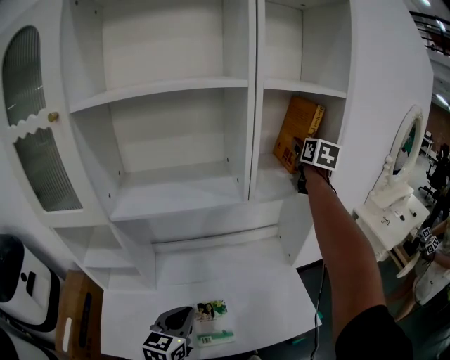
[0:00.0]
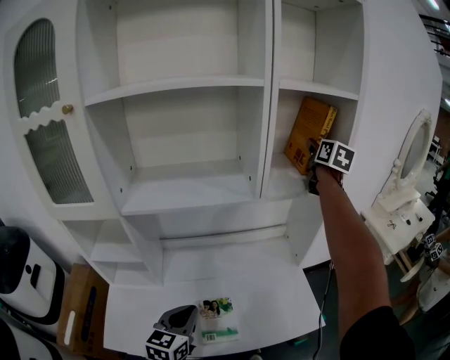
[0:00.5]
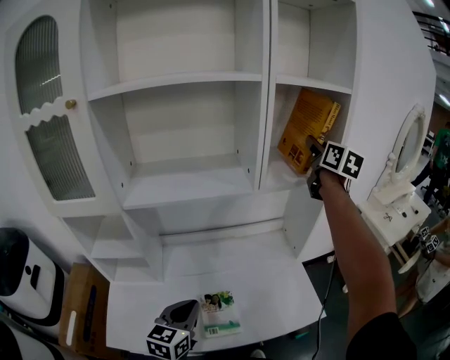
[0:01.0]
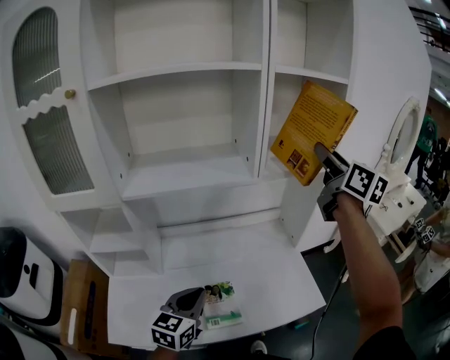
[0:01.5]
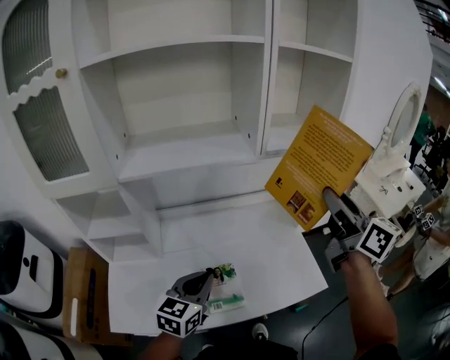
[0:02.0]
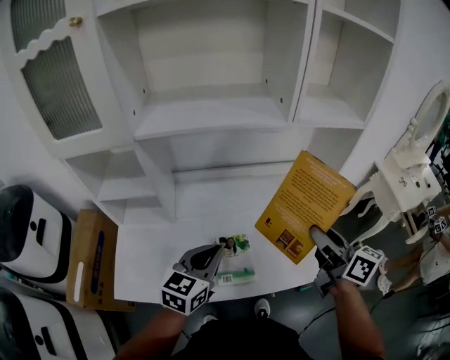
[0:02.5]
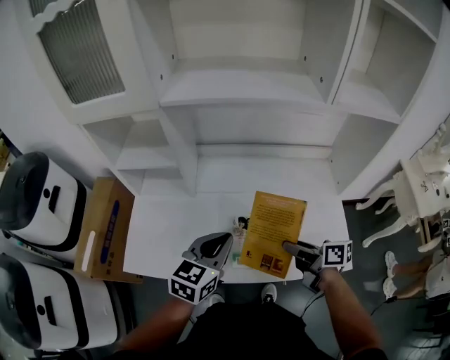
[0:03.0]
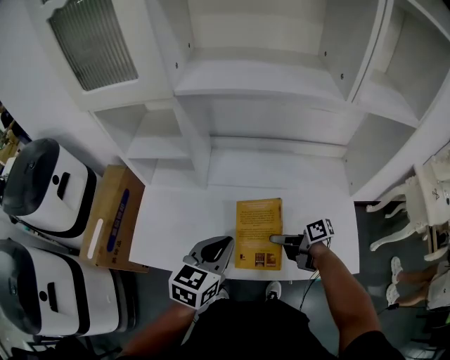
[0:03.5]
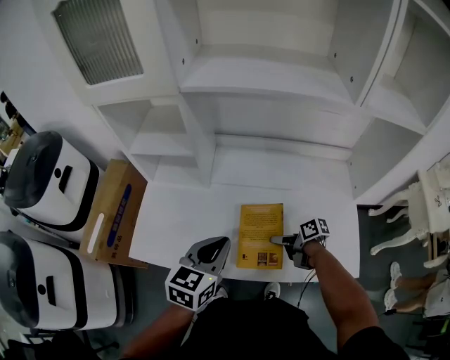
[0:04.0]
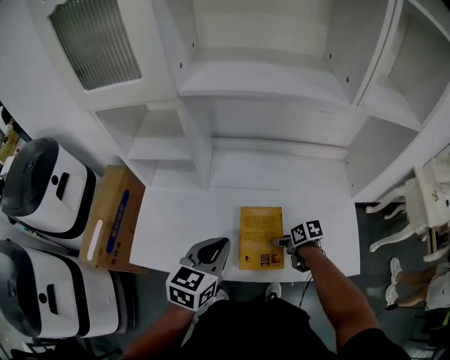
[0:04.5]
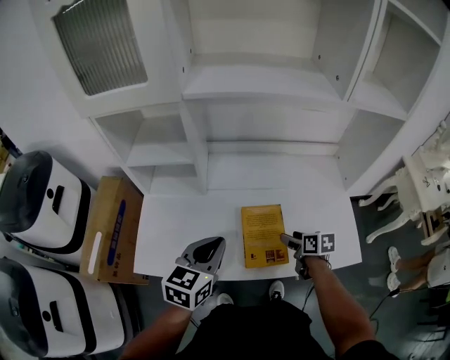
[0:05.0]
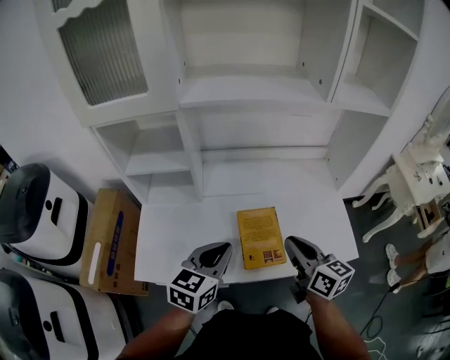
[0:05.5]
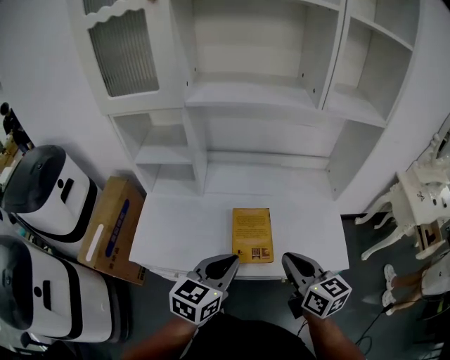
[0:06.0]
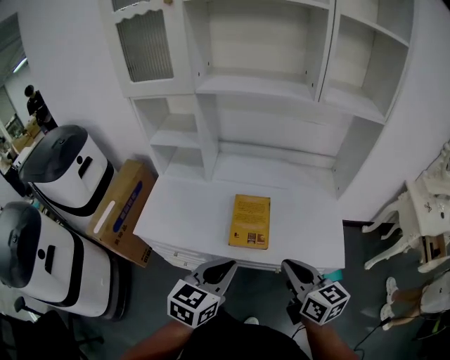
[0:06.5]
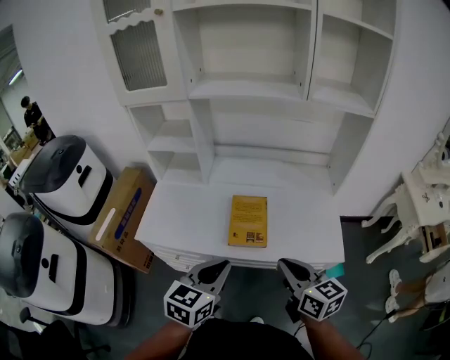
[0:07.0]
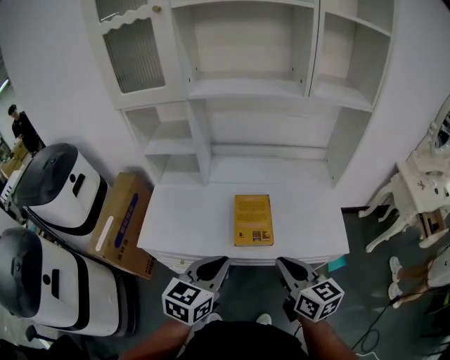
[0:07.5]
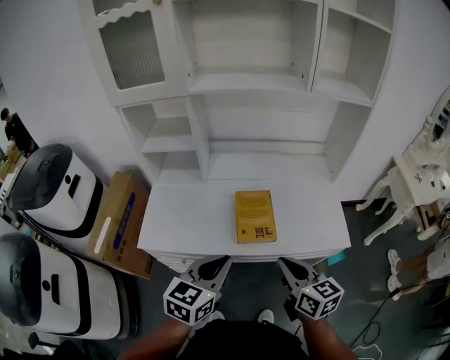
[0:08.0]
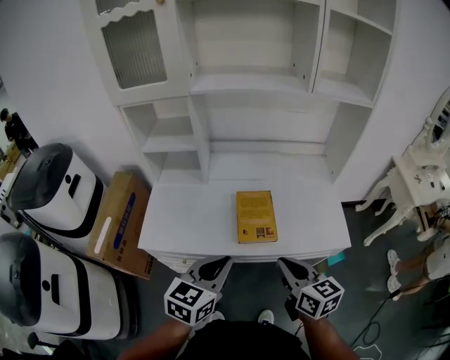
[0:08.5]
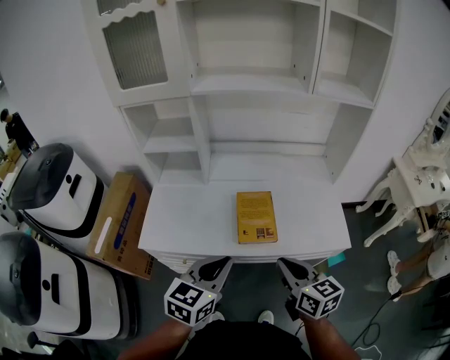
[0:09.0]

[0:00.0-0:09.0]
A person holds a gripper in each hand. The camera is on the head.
0:00.0 to 0:02.0: The right gripper heads backward, covering some 35 cm, and swivels roughly 30 degrees.
0:02.0 to 0:04.5: The right gripper moves downward, roughly 50 cm, points its fingers roughly 60 degrees further downward, and opens. The left gripper shifts by about 10 cm.
0:04.5 to 0:07.0: The left gripper changes place by about 20 cm. Meanwhile the right gripper goes some 25 cm upward, tips its fingers upward by about 40 degrees, and closes its fingers.
0:07.0 to 0:09.0: Both grippers travel together to the left, about 5 cm.

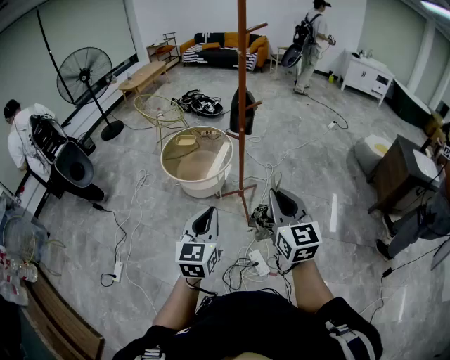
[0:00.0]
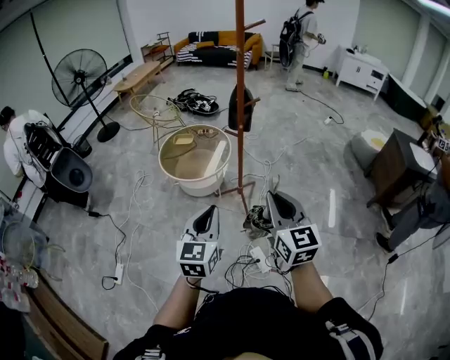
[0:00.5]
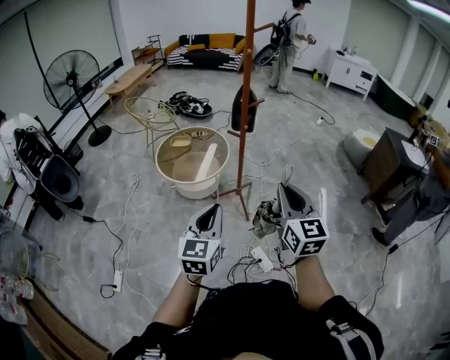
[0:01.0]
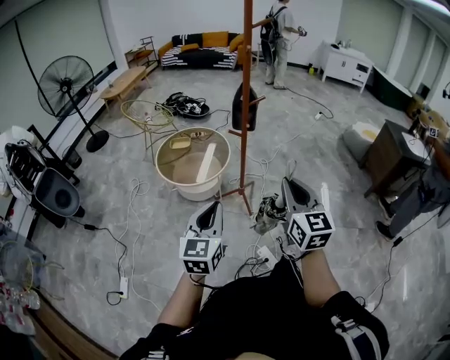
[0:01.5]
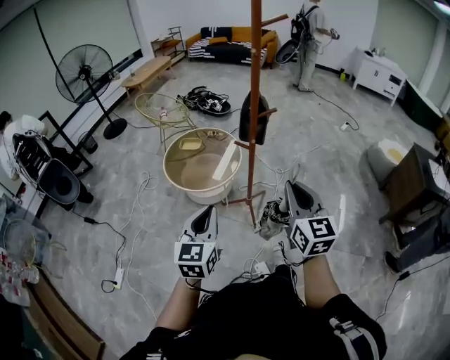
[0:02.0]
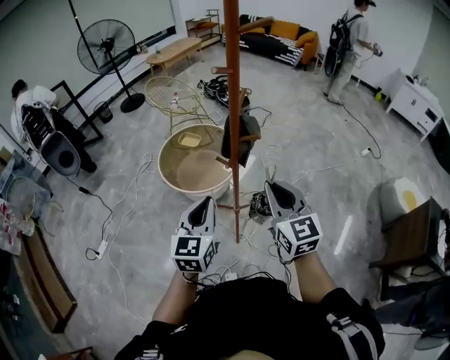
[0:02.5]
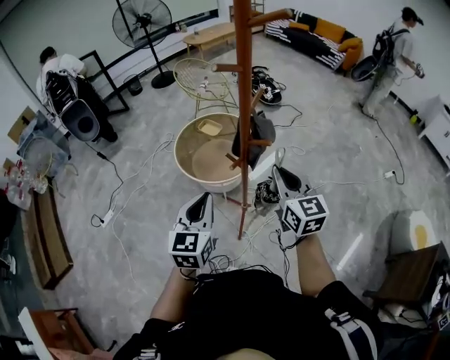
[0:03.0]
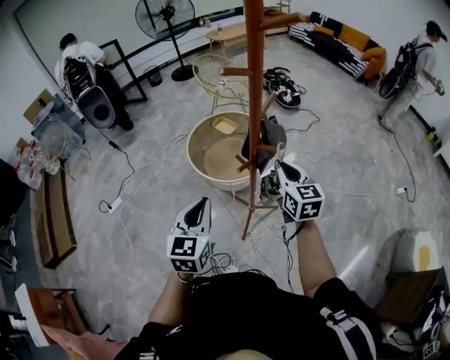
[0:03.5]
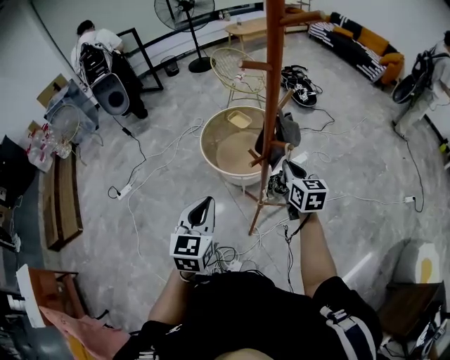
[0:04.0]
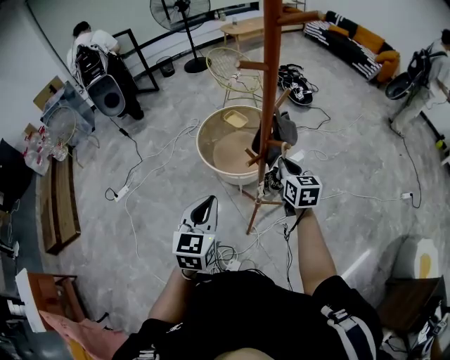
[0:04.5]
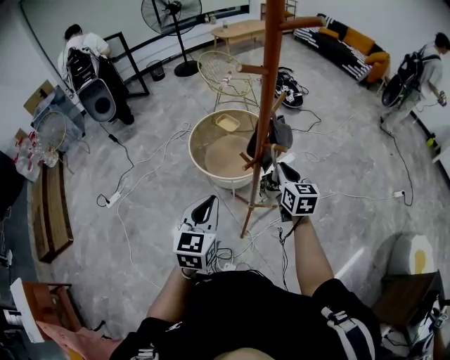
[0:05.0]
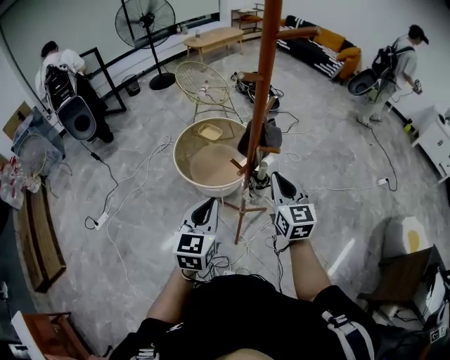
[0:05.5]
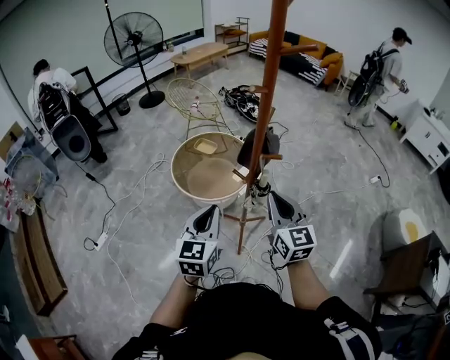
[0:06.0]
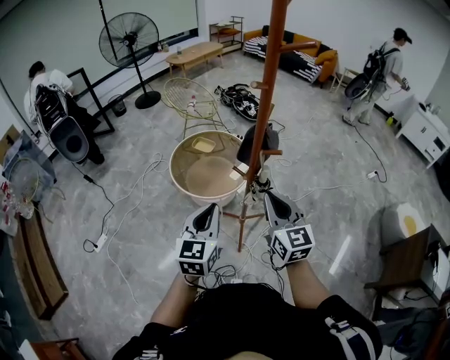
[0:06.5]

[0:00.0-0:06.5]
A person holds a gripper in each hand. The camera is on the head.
0:00.0 to 0:02.0: Both grippers move forward, approximately 20 cm.
0:02.0 to 0:04.5: Both grippers are carried about 50 cm. The right gripper rotates some 40 degrees, while the left gripper changes its angle by some 40 degrees.
0:04.5 to 0:06.5: The left gripper moves to the left and upward, roughly 15 cm; the right gripper is displaced backward, to the left and upward by some 25 cm, and swivels some 20 degrees.

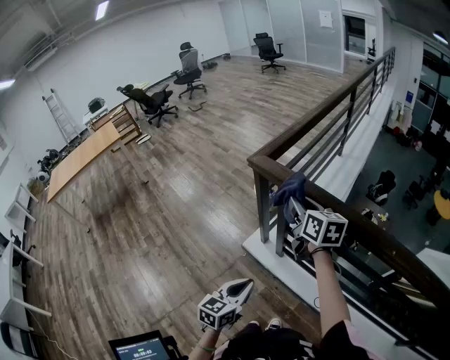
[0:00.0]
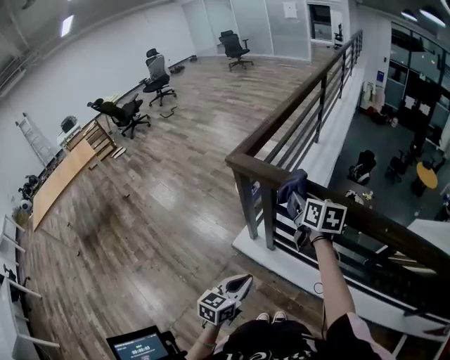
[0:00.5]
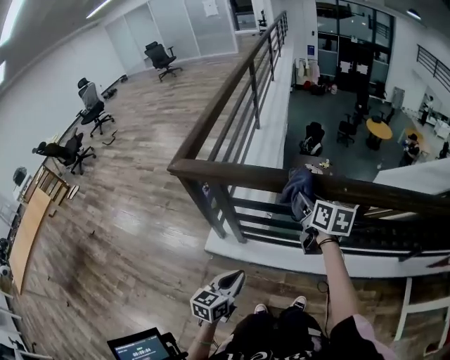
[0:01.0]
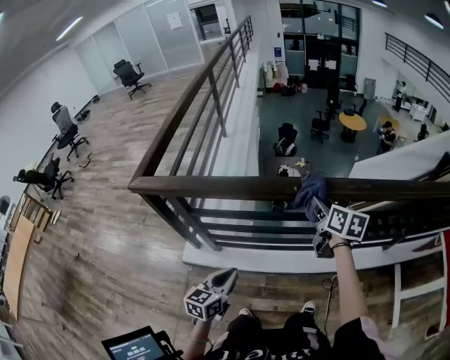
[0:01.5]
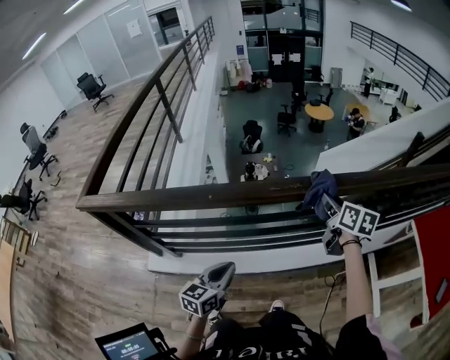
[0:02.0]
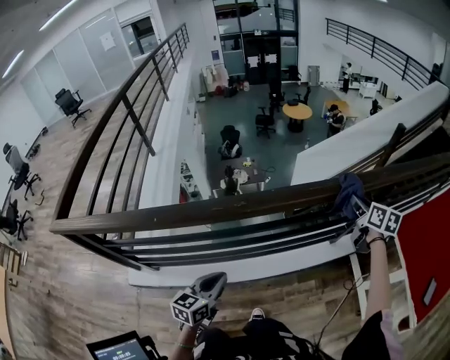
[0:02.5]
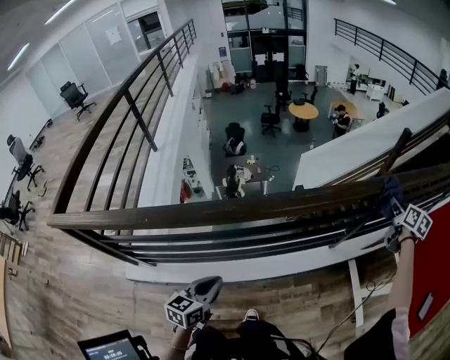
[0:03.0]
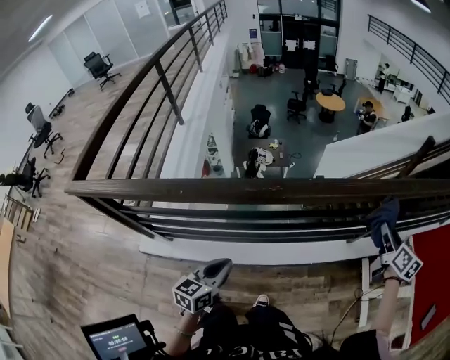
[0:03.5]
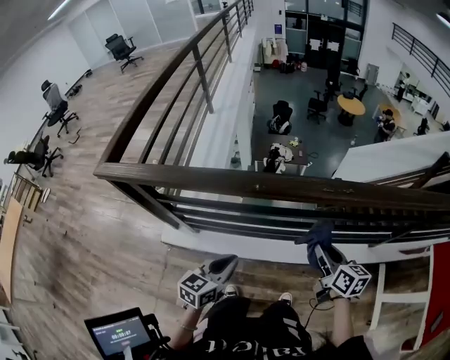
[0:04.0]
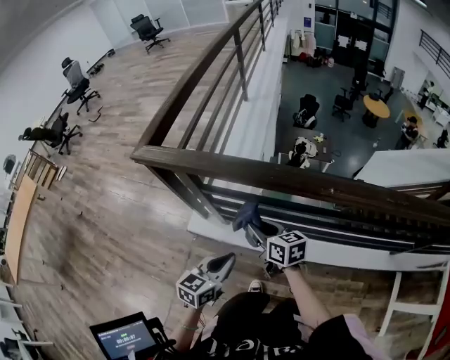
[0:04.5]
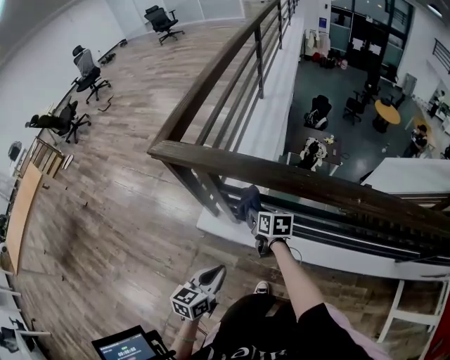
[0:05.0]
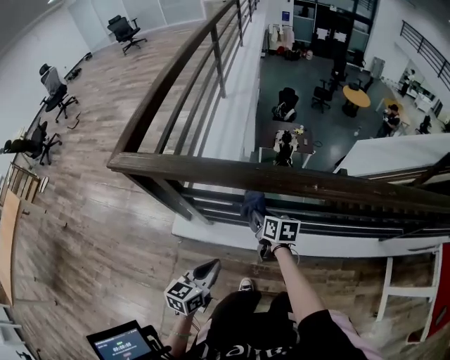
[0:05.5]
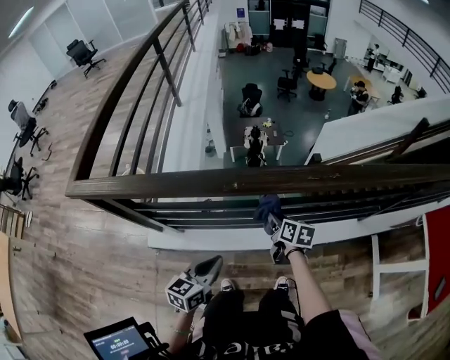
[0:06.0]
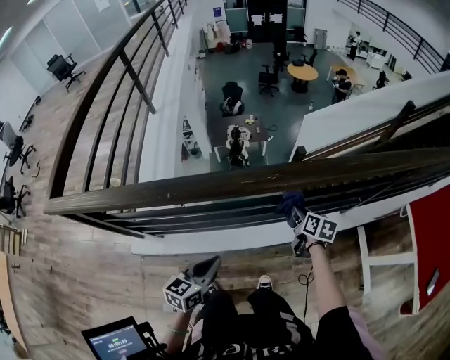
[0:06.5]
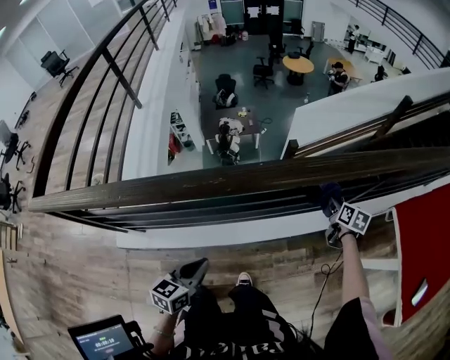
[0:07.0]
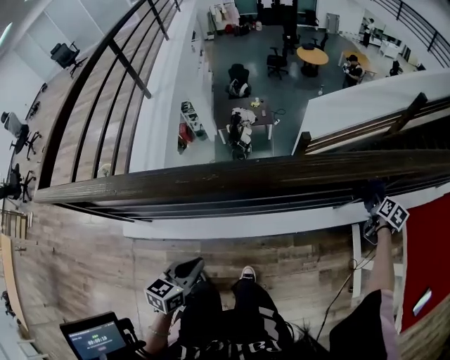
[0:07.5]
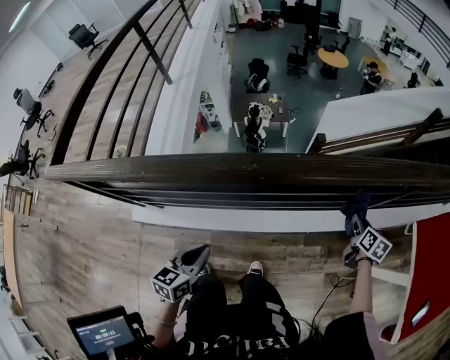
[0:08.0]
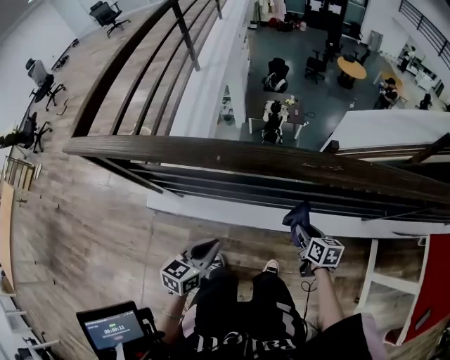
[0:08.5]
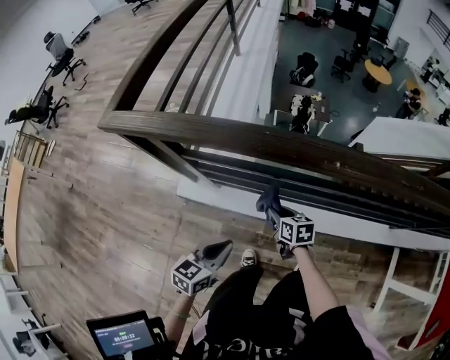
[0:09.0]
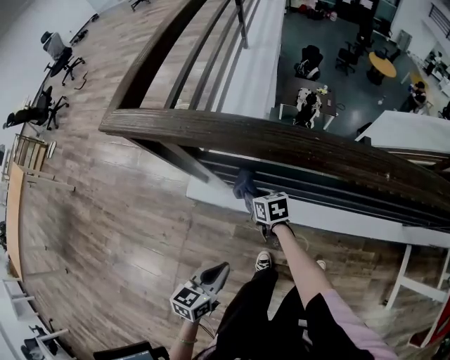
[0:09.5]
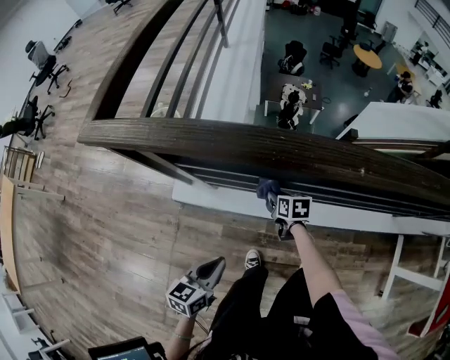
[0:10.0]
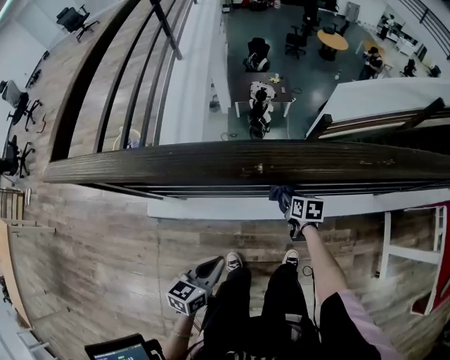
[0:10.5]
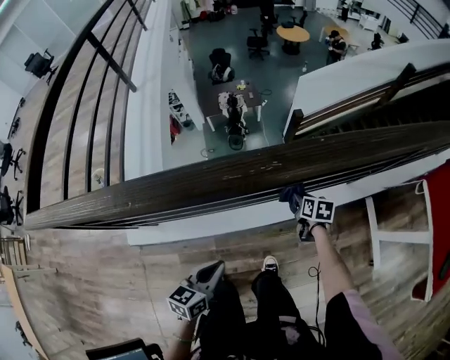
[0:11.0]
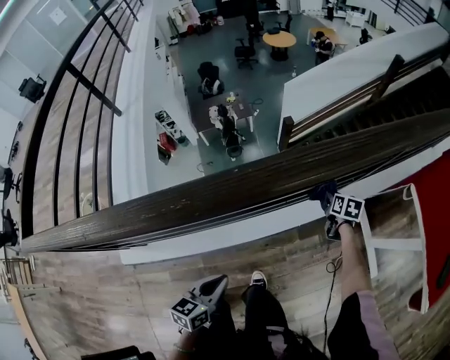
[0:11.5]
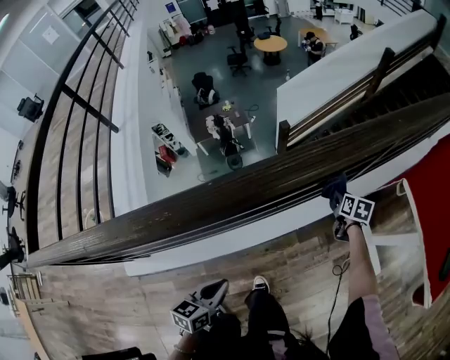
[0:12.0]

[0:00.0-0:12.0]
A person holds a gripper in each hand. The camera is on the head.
0:00.0 to 0:02.0: The left gripper shifts by roughly 40 cm, and turns by about 40 degrees. Meanwhile the right gripper changes place by approximately 70 cm, and swivels roughly 50 degrees.
0:04.0 to 0:06.0: The right gripper travels downward and forward by approximately 15 cm, and moves some 50 cm to the left and comes back; the left gripper moves approximately 30 cm to the left and comes back.
0:06.0 to 0:08.0: The right gripper goes roughly 50 cm to the right, and changes its angle by roughly 20 degrees. The left gripper shifts approximately 20 cm to the right.
0:08.0 to 0:10.0: Both grippers are carried about 60 cm. The right gripper swivels roughly 40 degrees.
0:10.0 to 0:12.0: The two grippers travel together, approximately 70 cm. The right gripper turns by about 50 degrees; the left gripper rotates roughly 30 degrees.
